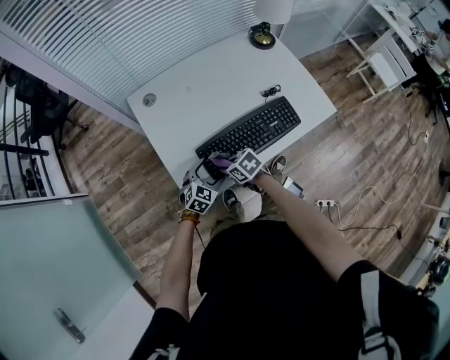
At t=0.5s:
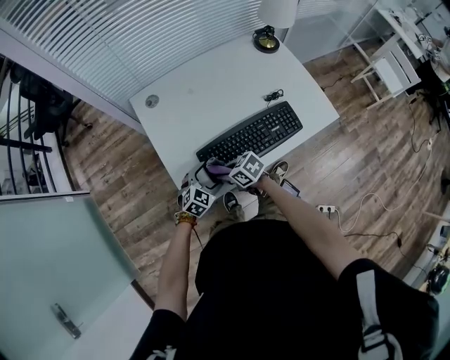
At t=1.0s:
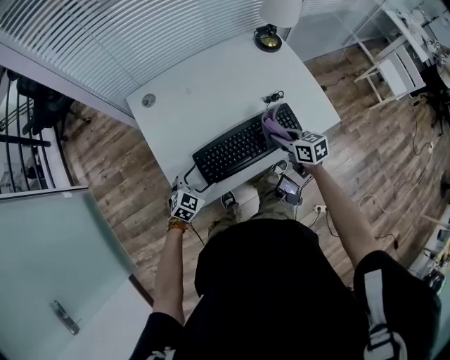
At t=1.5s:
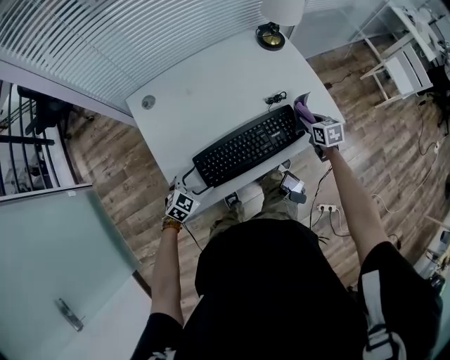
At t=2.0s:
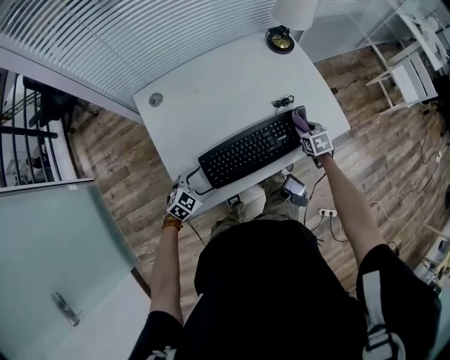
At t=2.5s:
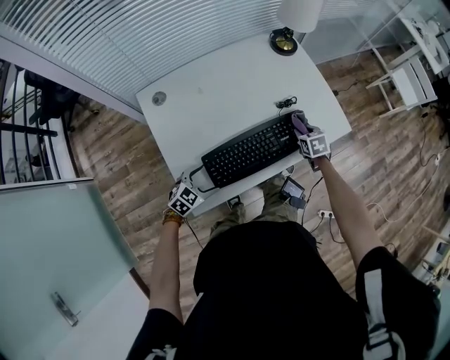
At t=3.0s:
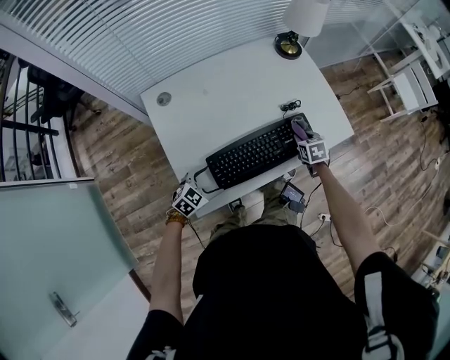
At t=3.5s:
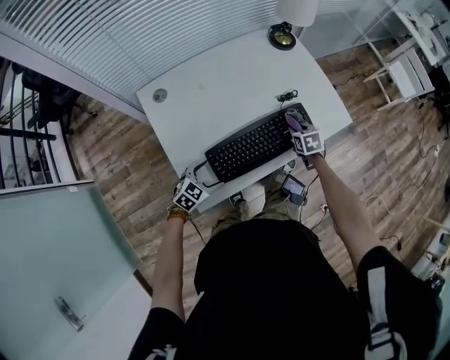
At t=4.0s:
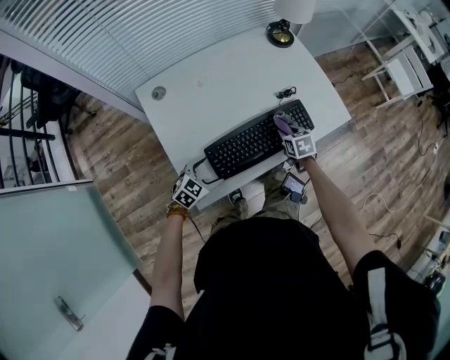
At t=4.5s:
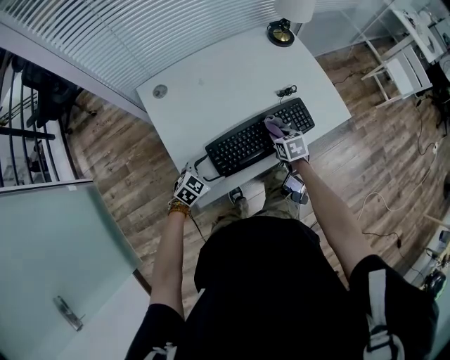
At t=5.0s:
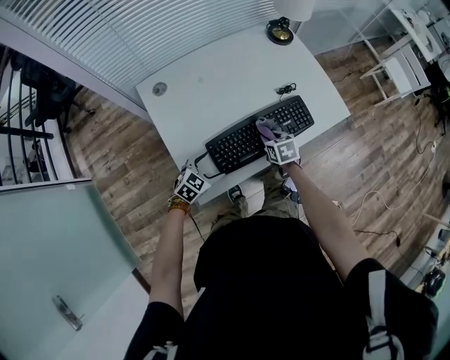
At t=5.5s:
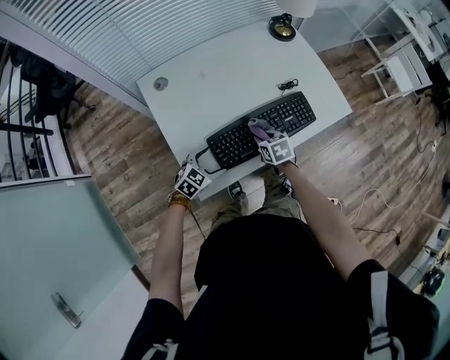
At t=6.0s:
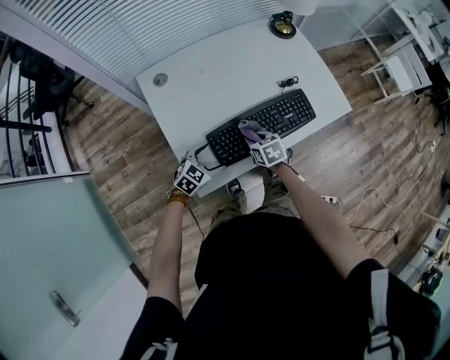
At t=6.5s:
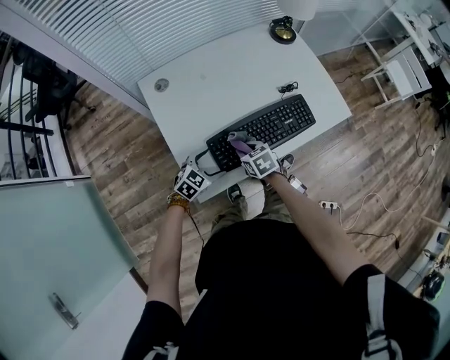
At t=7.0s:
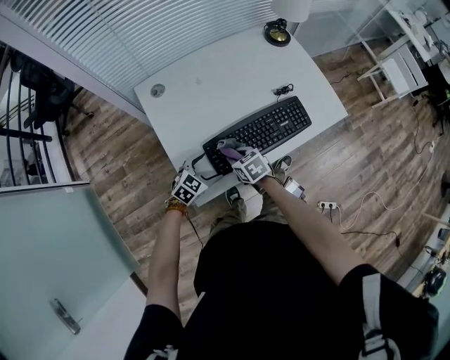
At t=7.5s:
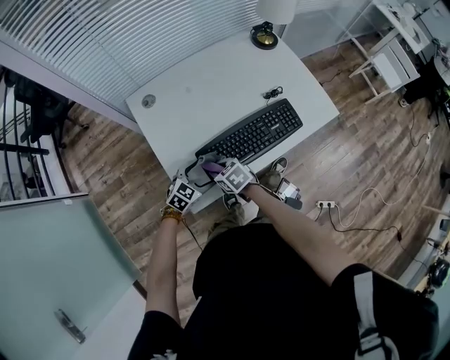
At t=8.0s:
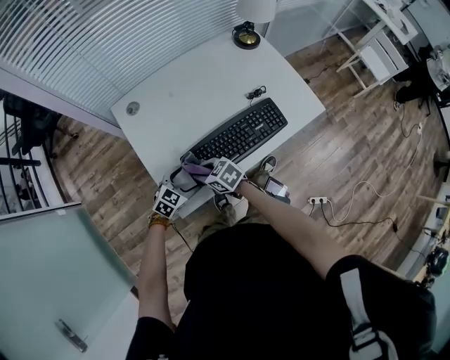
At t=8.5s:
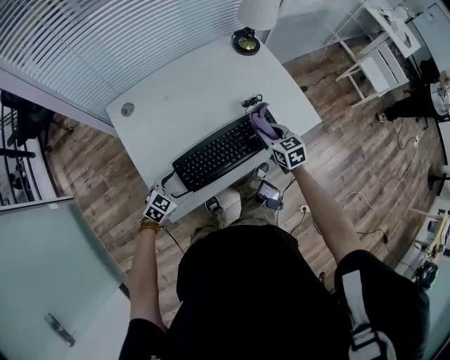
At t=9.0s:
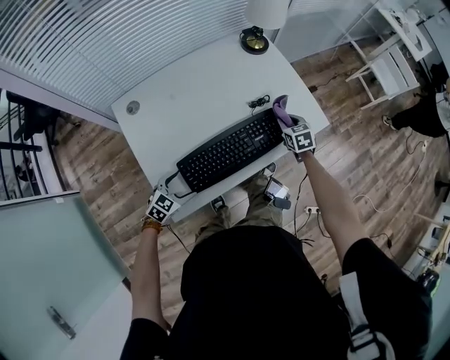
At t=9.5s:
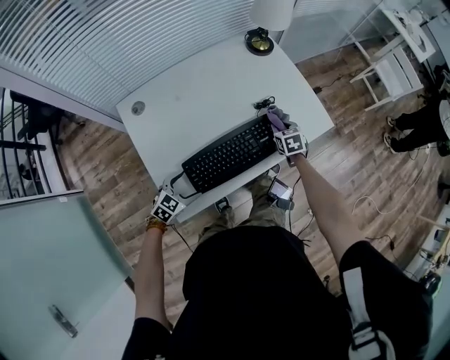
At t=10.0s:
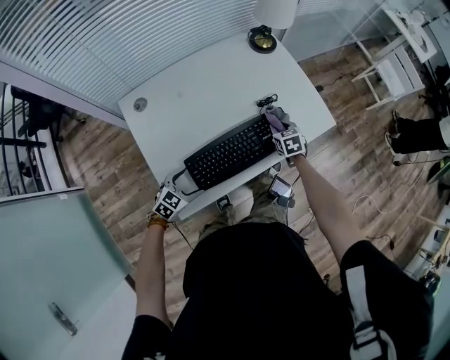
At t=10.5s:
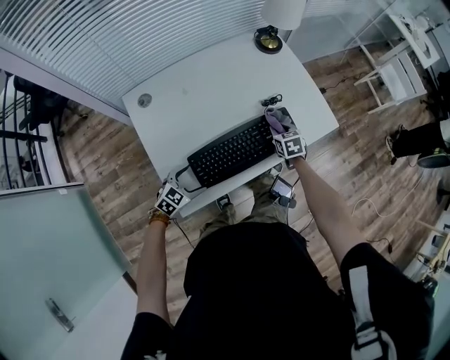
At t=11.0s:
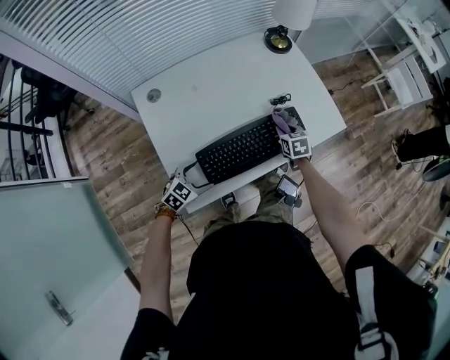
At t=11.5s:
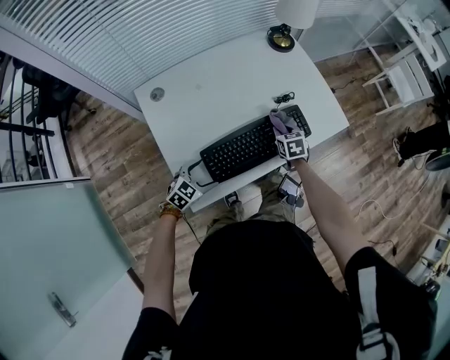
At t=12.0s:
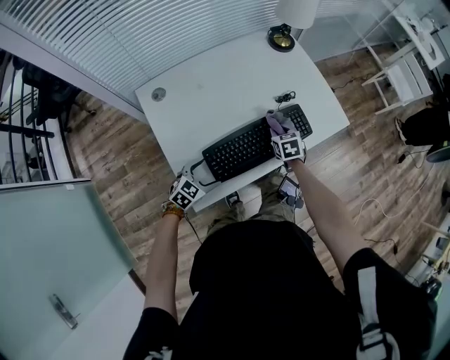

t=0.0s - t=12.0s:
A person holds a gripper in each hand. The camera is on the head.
t=0.0s - t=2.0s: The right gripper moves approximately 10 cm upward and comes back, and rotates approximately 30 degrees.
t=2.0s - t=4.0s: The right gripper travels backward and to the left by approximately 10 cm.
t=4.0s - t=6.0s: The right gripper shifts some 15 cm to the left and backward.
t=6.0s - t=8.0s: The right gripper moves approximately 10 cm, and rotates some 30 degrees.
t=8.0s - t=10.0s: The right gripper travels upward and back again, approximately 5 cm each way, and swivels roughly 40 degrees.
t=10.0s - t=12.0s: The right gripper moves to the left and backward, approximately 10 cm.

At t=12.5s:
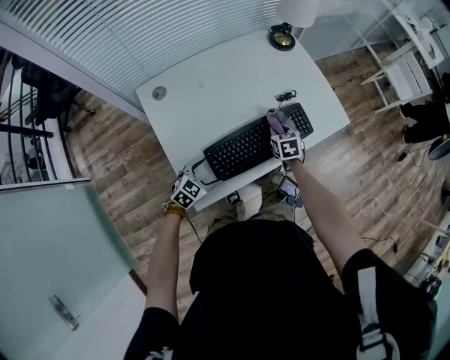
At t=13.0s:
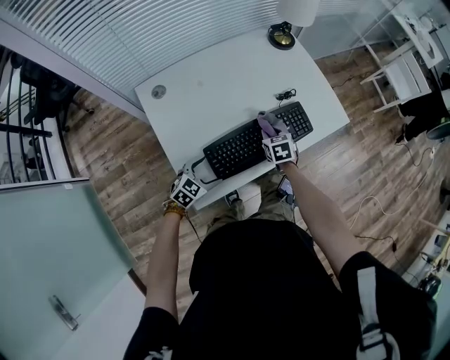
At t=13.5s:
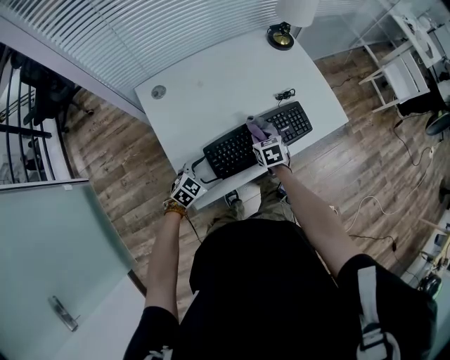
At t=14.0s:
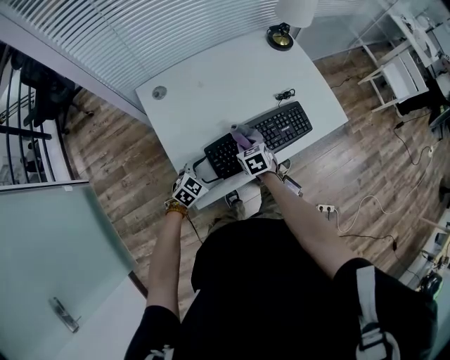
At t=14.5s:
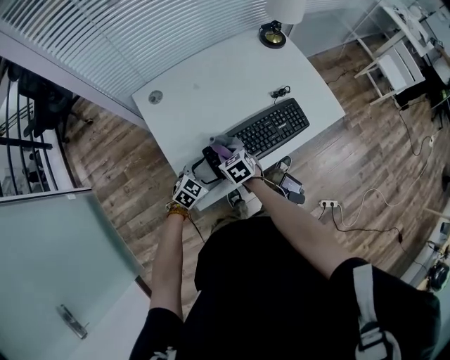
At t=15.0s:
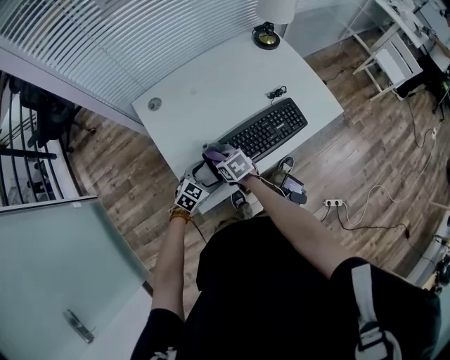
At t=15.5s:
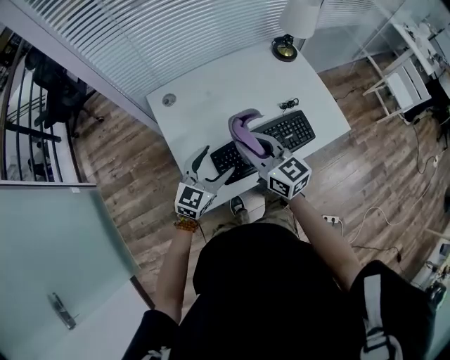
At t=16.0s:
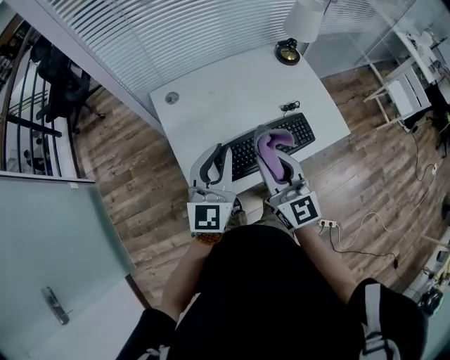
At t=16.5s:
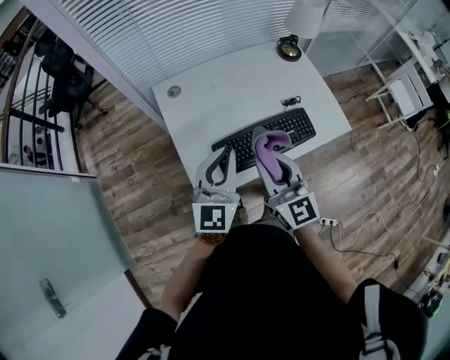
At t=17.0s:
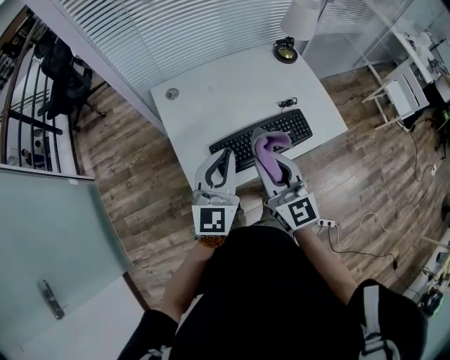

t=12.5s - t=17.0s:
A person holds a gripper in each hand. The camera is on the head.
t=12.5s - t=14.5s: The right gripper heads to the left and backward, covering approximately 25 cm.
t=14.5s - t=17.0s: The grippers both shift upward by some 30 cm. The right gripper tips its fingers upward by about 50 degrees, while the left gripper tips its fingers upward by approximately 40 degrees, and closes up.

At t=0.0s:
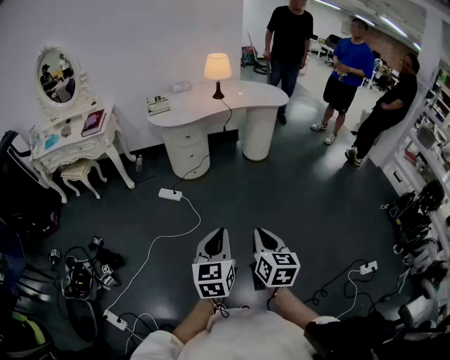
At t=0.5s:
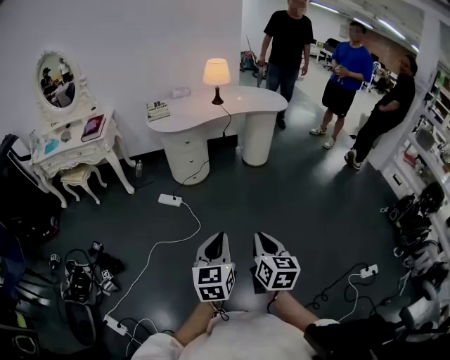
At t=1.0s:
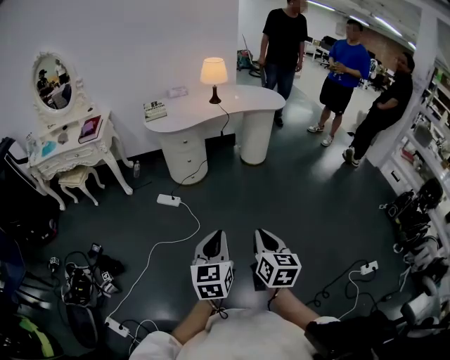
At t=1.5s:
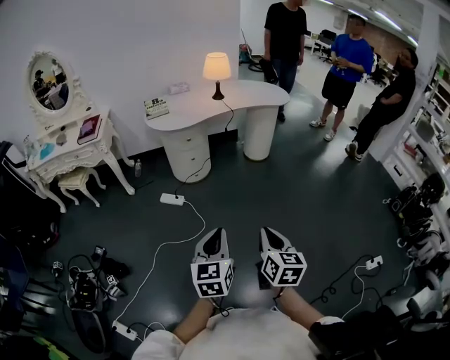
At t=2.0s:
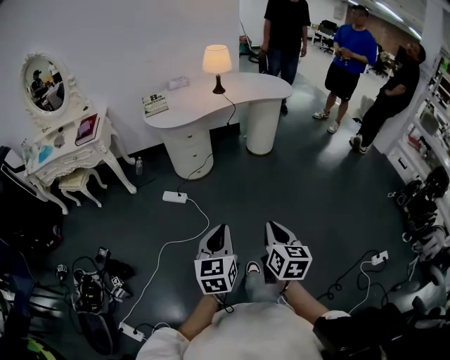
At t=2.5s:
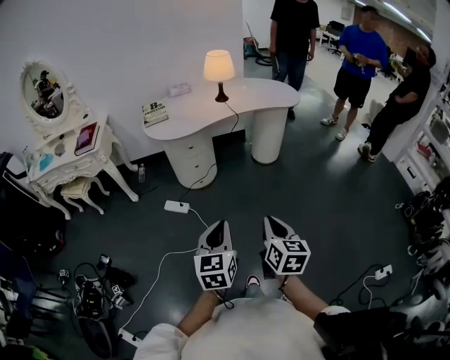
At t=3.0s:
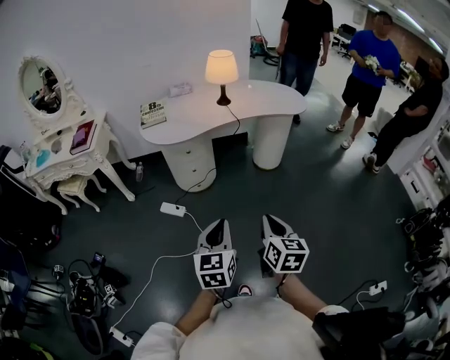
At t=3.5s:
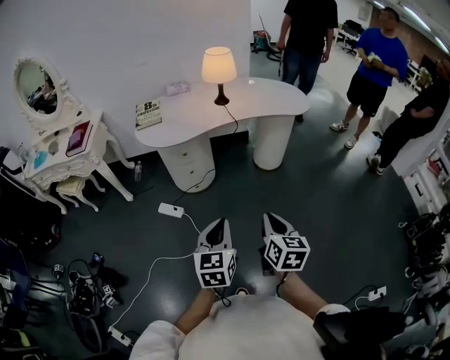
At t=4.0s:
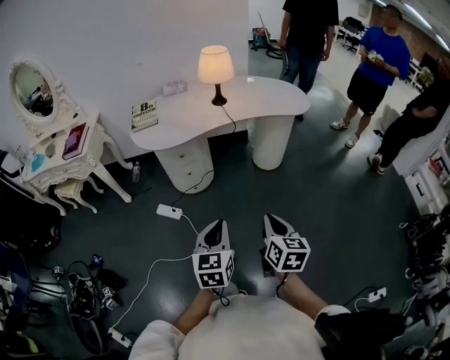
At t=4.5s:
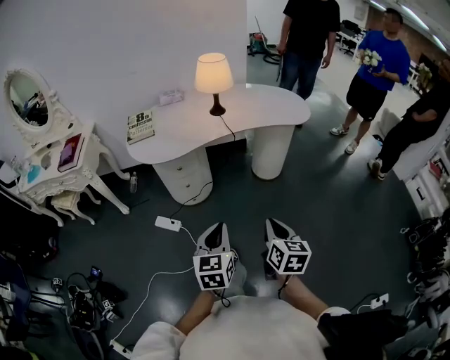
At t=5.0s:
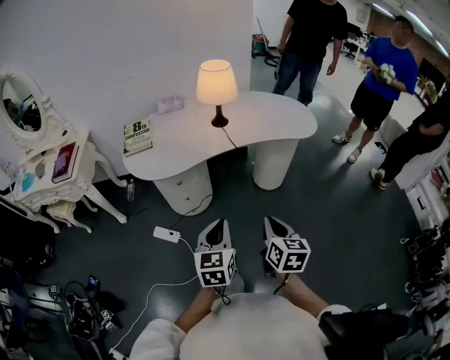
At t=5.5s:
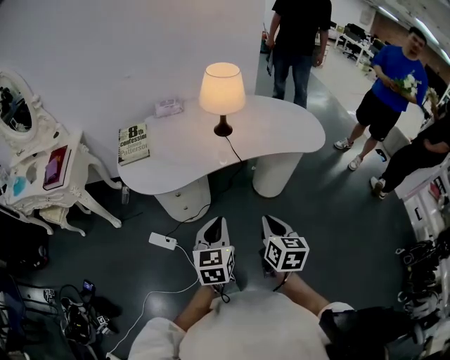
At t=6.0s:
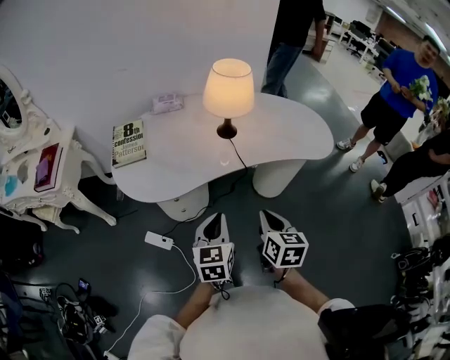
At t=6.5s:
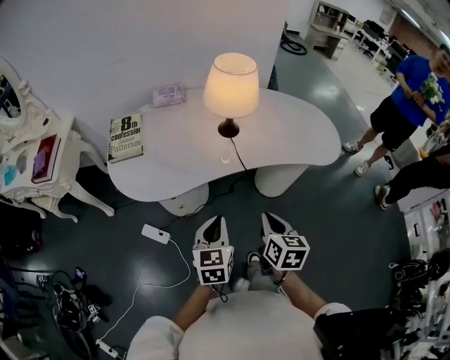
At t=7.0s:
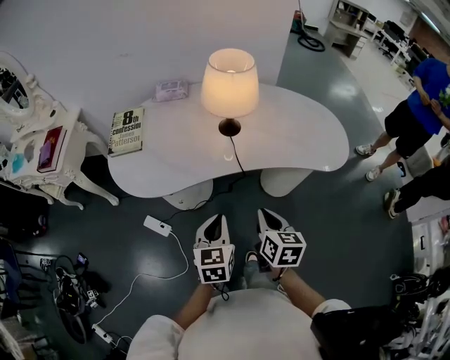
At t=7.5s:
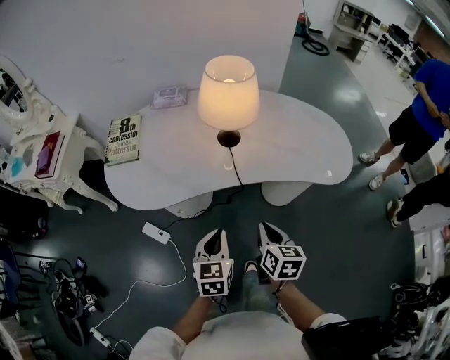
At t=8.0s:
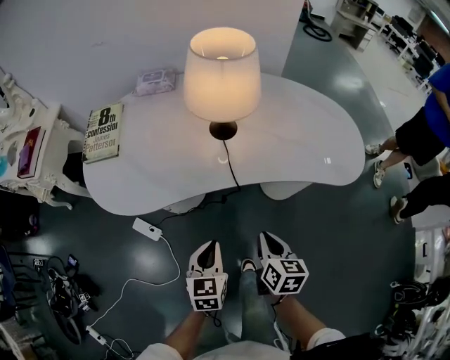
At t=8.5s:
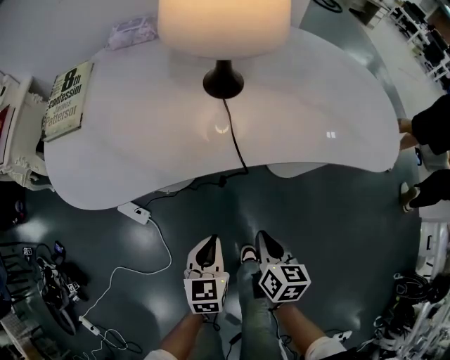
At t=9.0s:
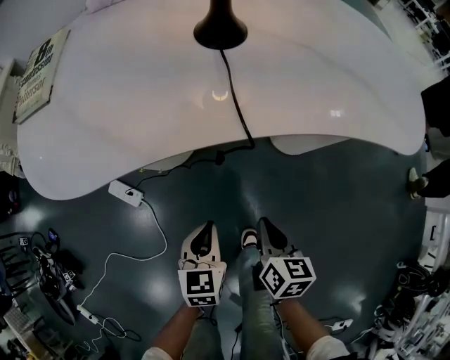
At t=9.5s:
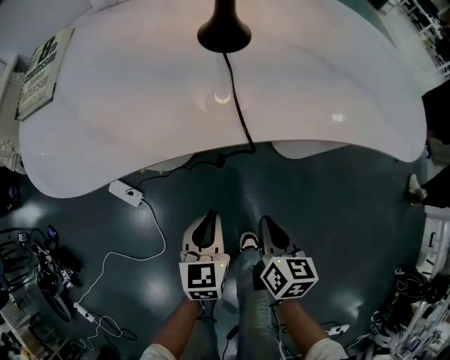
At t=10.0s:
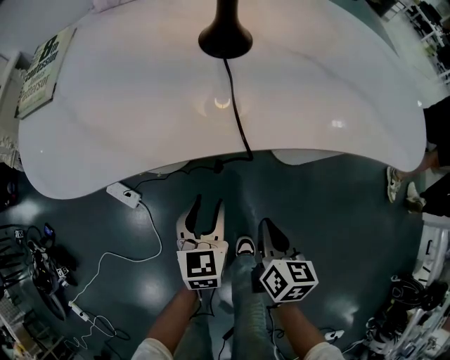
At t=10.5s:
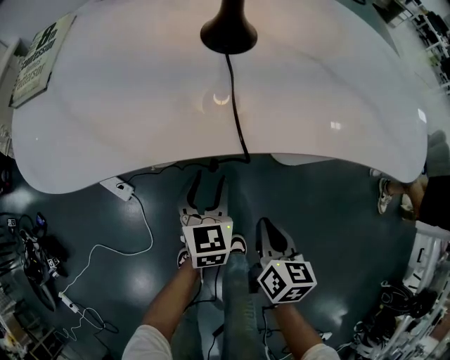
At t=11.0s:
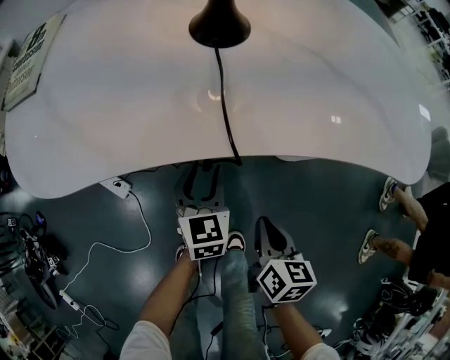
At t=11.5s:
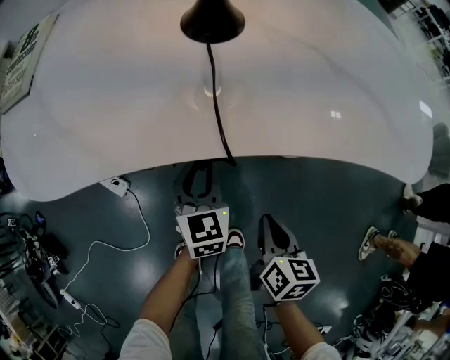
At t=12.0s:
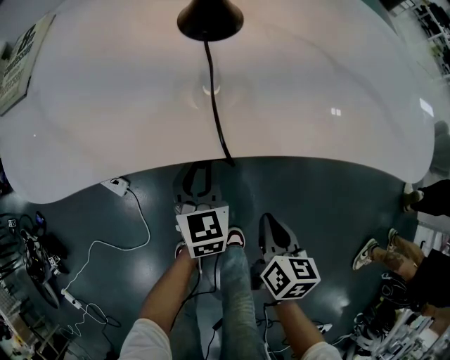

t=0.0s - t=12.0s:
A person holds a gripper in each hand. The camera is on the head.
t=0.0s - t=2.0s: The left gripper heads forward and to the left, covering some 10 cm. The right gripper moves forward, about 10 cm.
t=2.0s - t=4.0s: The grippers both shift forward by some 30 cm.
t=4.0s - t=6.0s: Both grippers move forward, approximately 35 cm.
t=6.0s - t=8.0s: The left gripper goes approximately 20 cm downward, to the right and forward. Meanwhile the right gripper heads downward, forward and to the right, covering about 20 cm.
t=8.0s - t=10.0s: The left gripper travels downward and forward by approximately 20 cm, and opens up, while the right gripper heads downward, covering roughly 20 cm.
t=10.0s - t=12.0s: The right gripper changes place by approximately 5 cm, while the left gripper goes approximately 10 cm forward.
